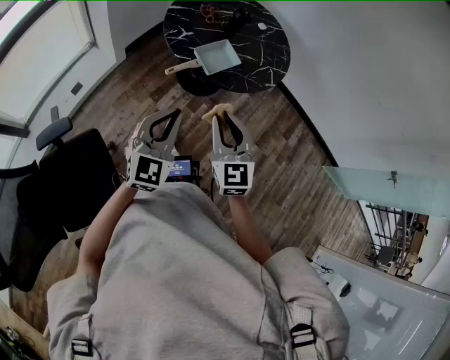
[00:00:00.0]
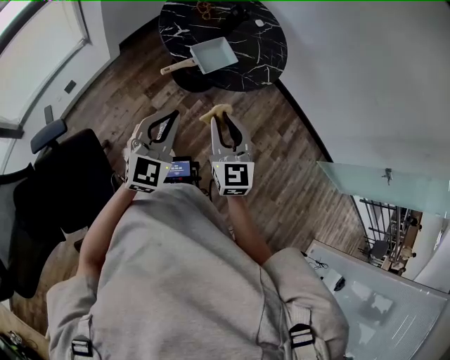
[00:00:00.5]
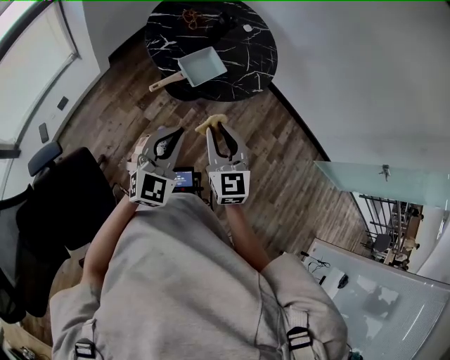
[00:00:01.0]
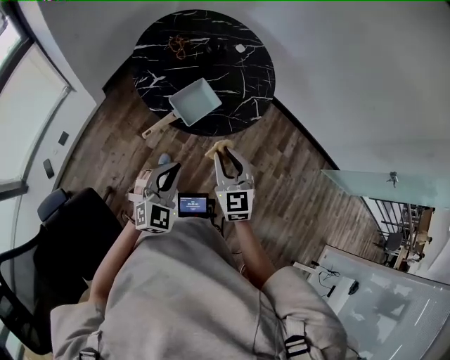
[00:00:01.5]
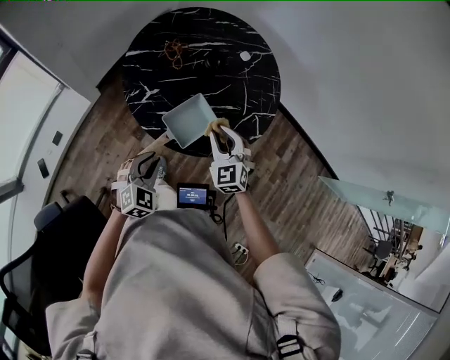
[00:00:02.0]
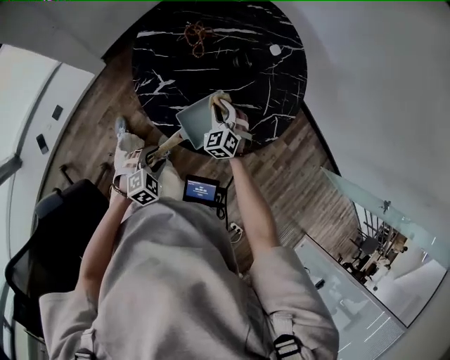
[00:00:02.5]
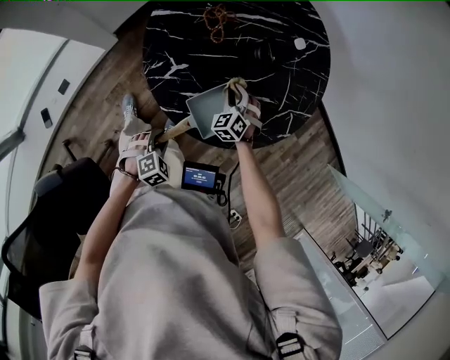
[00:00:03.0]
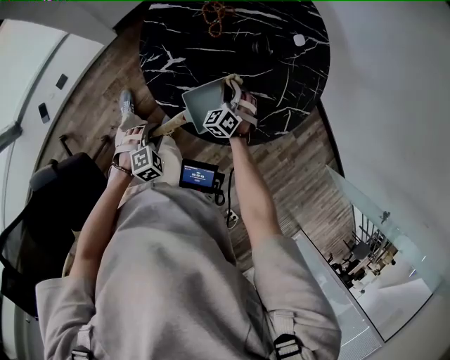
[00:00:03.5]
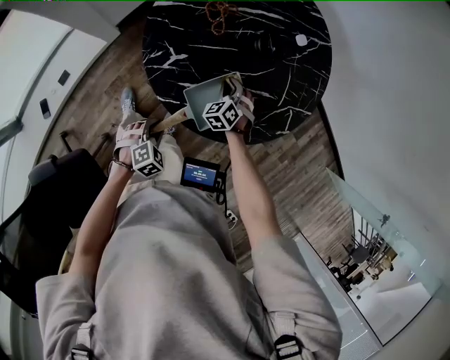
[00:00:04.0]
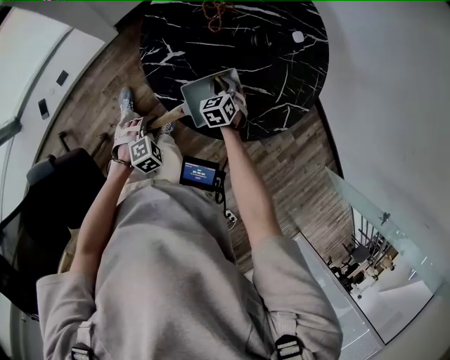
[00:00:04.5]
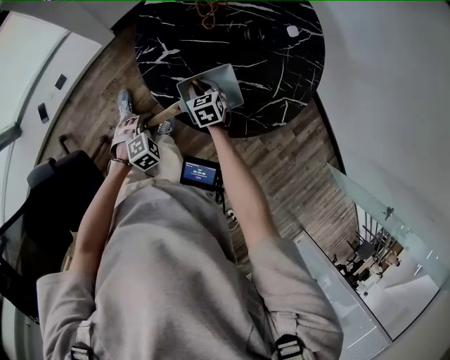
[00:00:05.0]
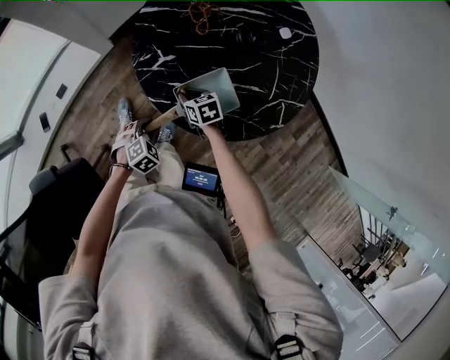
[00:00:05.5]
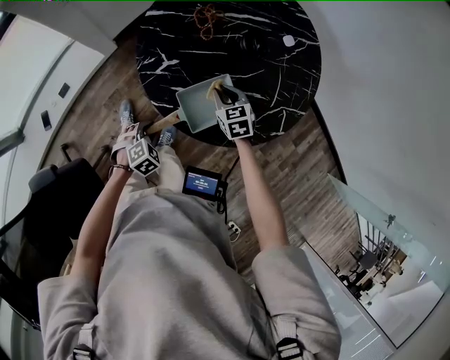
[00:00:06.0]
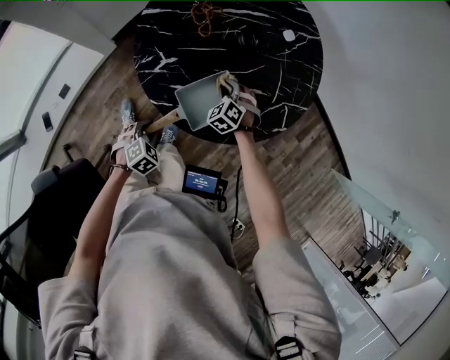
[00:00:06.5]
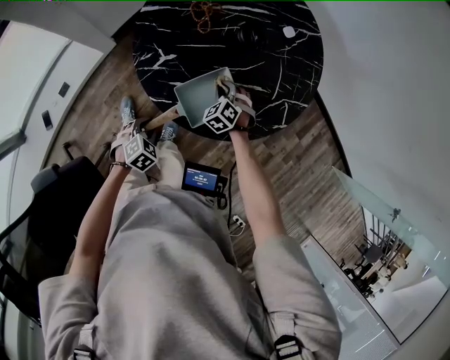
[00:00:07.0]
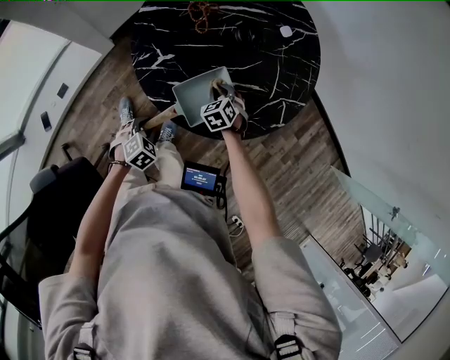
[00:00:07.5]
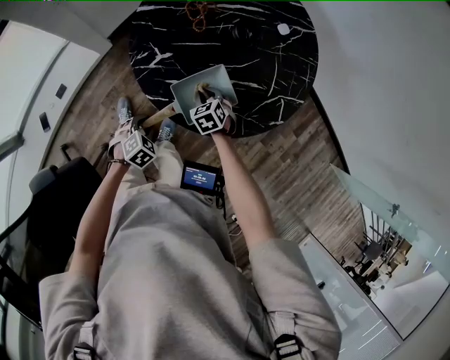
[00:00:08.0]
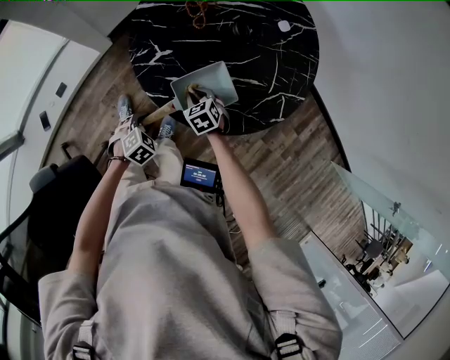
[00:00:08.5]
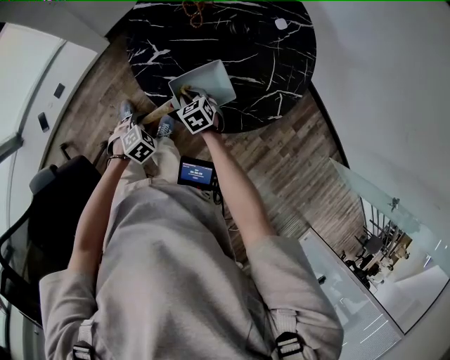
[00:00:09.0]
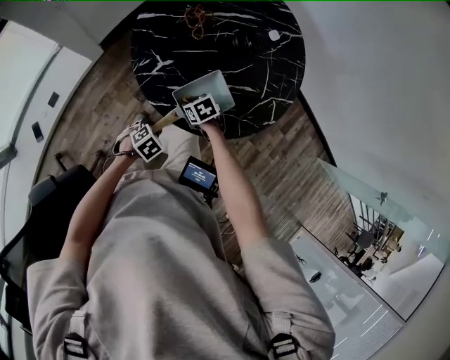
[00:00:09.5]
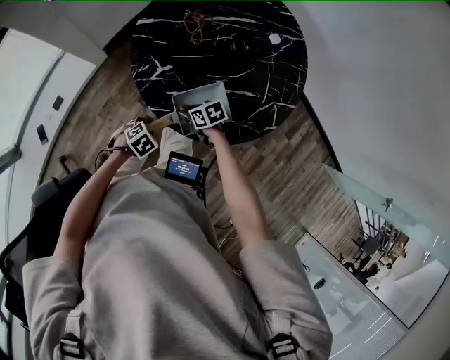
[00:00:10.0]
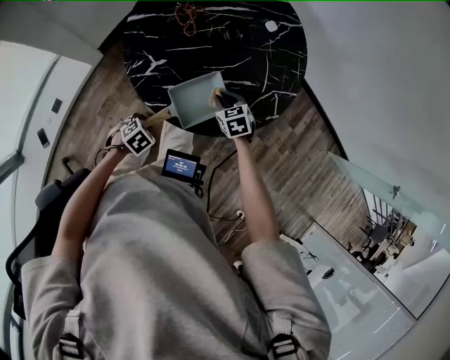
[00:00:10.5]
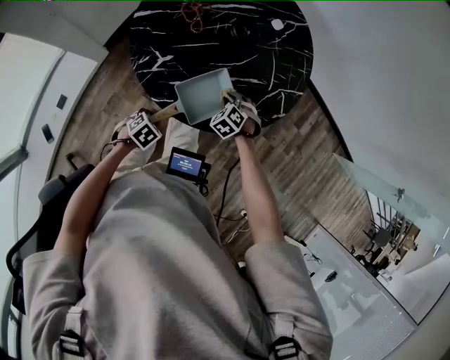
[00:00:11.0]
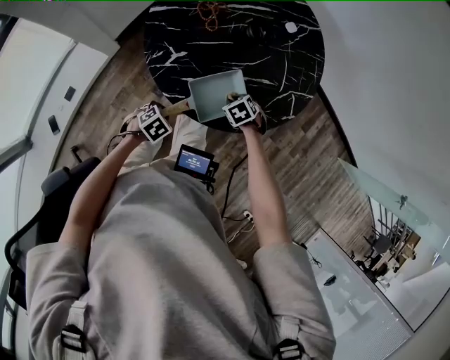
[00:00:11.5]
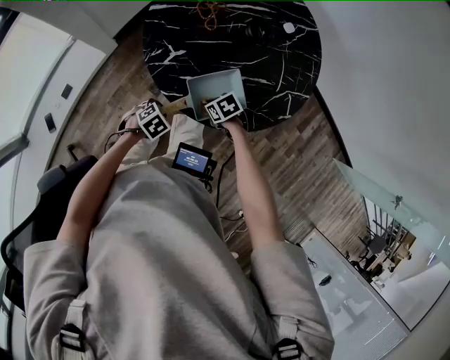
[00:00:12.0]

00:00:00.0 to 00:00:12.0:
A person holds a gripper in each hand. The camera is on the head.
00:00:00.0 to 00:00:02.0: The left gripper travels forward and downward by approximately 30 cm, and tilts its fingers approximately 30 degrees downward. The right gripper travels forward by approximately 35 cm, and turns by about 30 degrees.
00:00:02.0 to 00:00:04.0: The right gripper moves downward and forward, about 25 cm, and swivels approximately 30 degrees. Meanwhile the left gripper moves downward, roughly 20 cm, and rotates some 30 degrees.
00:00:04.0 to 00:00:06.0: The right gripper goes roughly 5 cm upward, and changes its angle by some 30 degrees.
00:00:06.0 to 00:00:08.0: The right gripper heads downward, covering about 5 cm.
00:00:08.0 to 00:00:10.0: The left gripper turns by some 20 degrees. Meanwhile the right gripper moves some 5 cm, and swivels approximately 40 degrees.

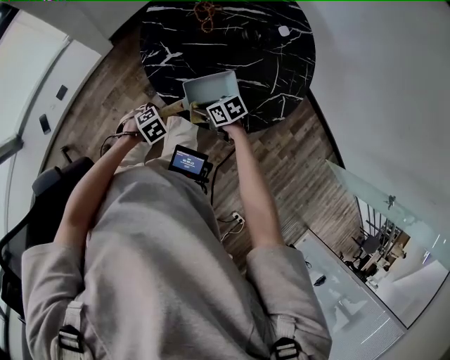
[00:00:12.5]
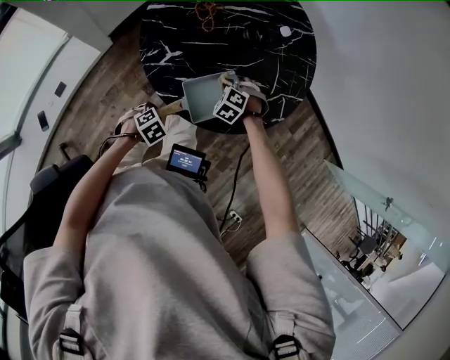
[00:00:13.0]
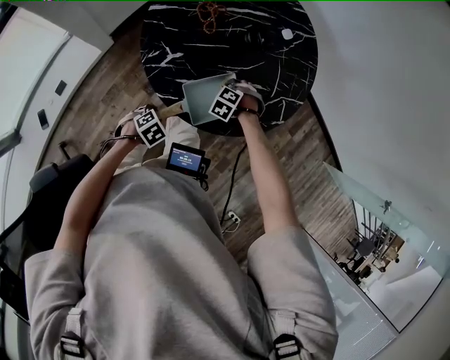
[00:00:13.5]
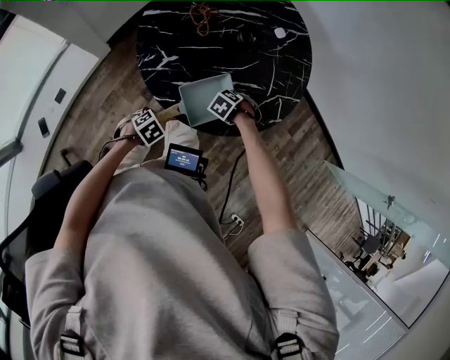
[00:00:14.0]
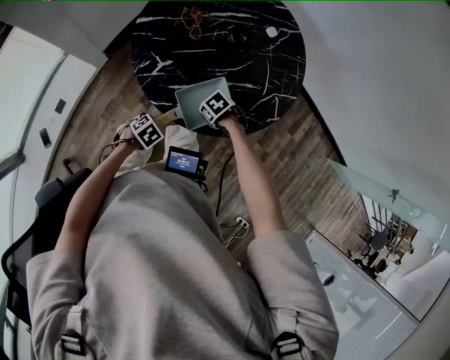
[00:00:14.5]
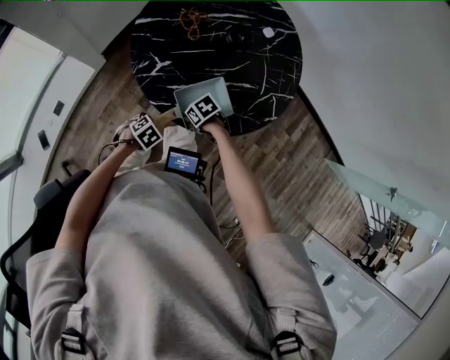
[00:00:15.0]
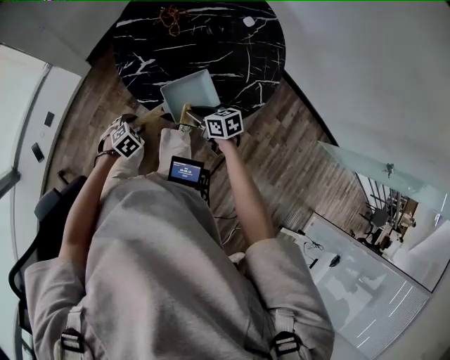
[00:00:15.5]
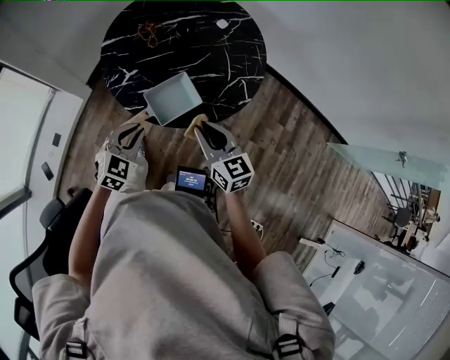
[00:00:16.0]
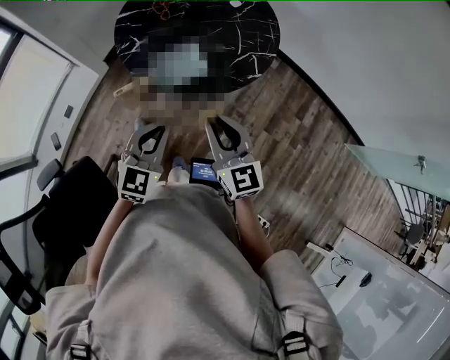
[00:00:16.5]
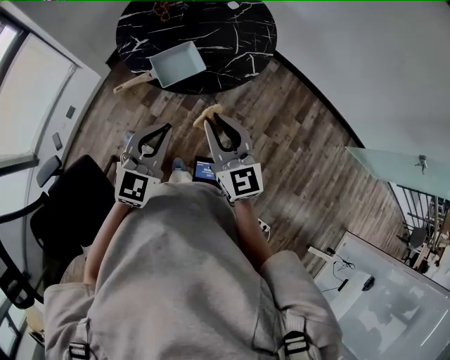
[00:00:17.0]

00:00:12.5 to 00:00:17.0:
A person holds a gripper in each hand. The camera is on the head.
00:00:12.5 to 00:00:14.5: The right gripper rotates roughly 30 degrees.
00:00:14.5 to 00:00:17.0: The grippers both shift upward by some 35 cm. The left gripper angles its fingers upward, by approximately 60 degrees, and opens, then closes once more. The right gripper points its fingers approximately 70 degrees further upward.

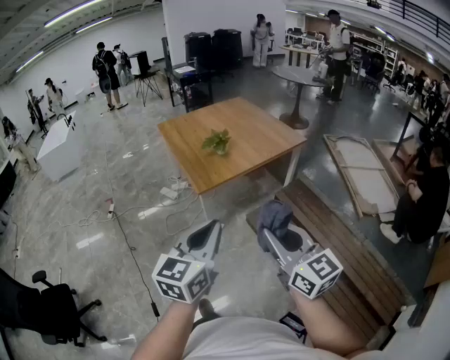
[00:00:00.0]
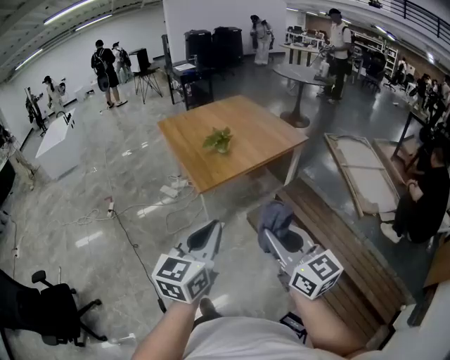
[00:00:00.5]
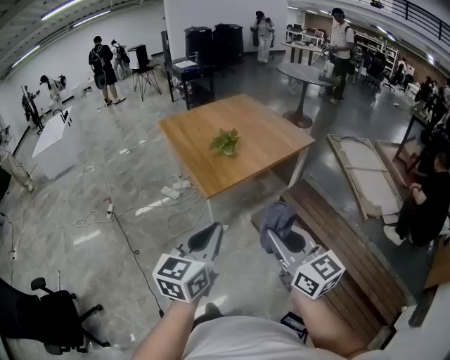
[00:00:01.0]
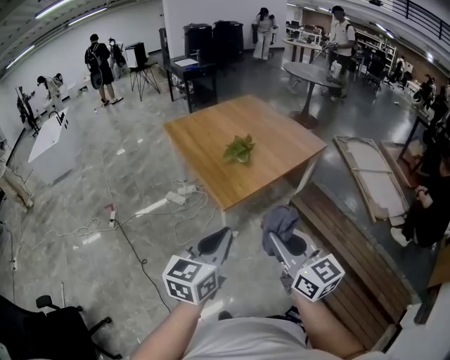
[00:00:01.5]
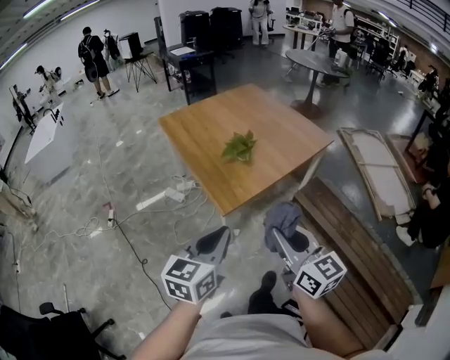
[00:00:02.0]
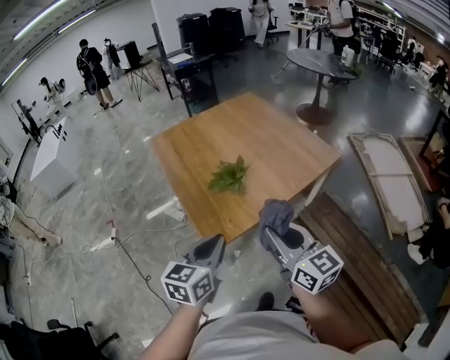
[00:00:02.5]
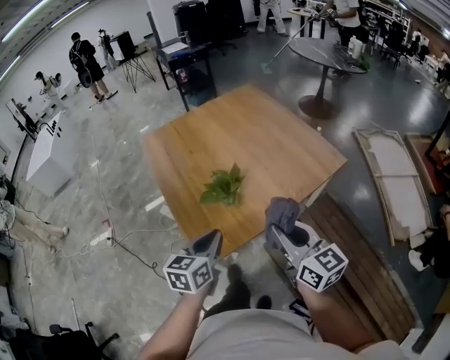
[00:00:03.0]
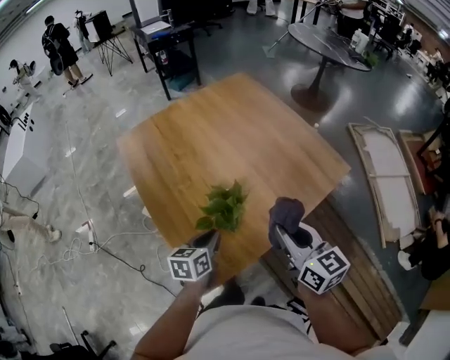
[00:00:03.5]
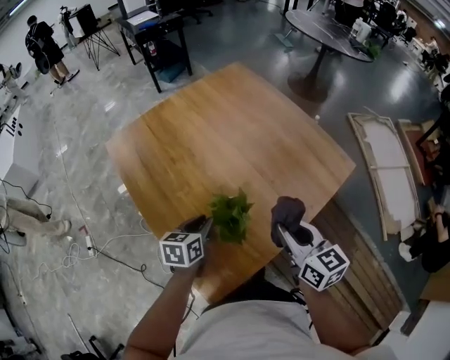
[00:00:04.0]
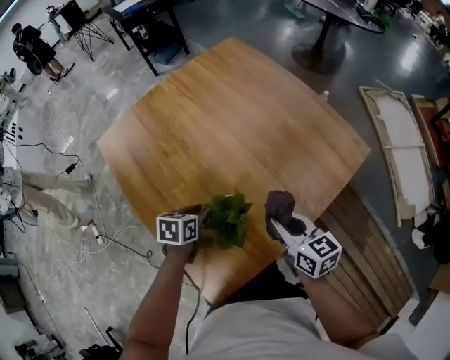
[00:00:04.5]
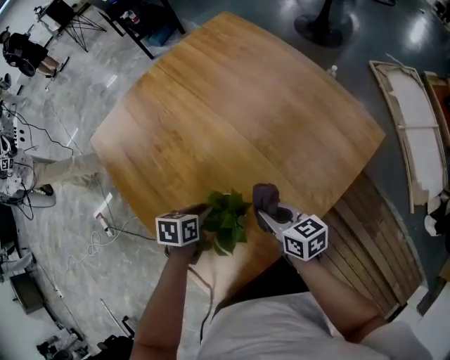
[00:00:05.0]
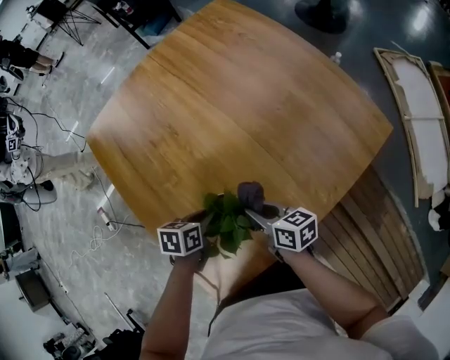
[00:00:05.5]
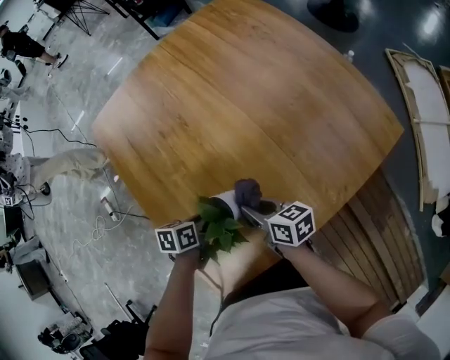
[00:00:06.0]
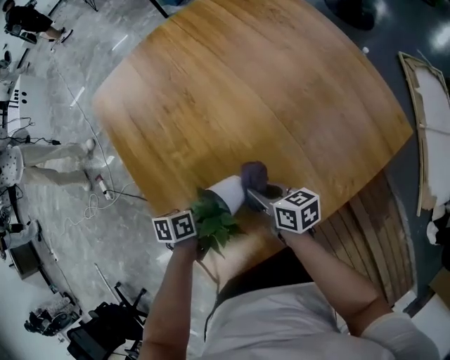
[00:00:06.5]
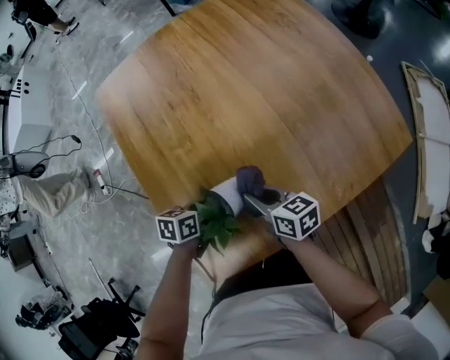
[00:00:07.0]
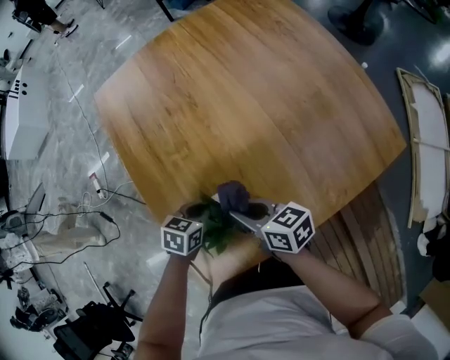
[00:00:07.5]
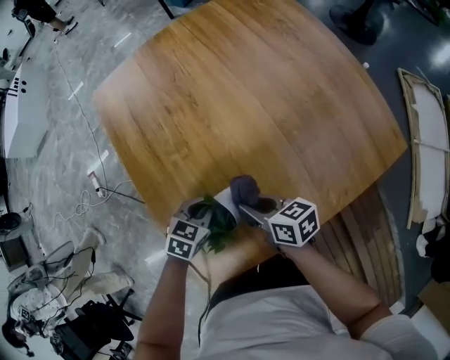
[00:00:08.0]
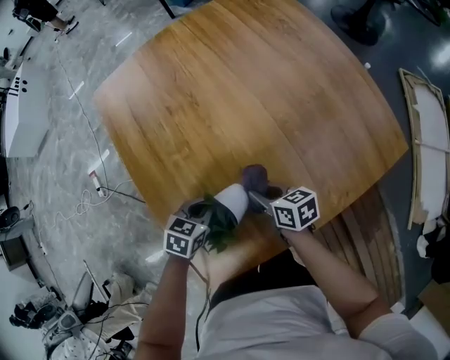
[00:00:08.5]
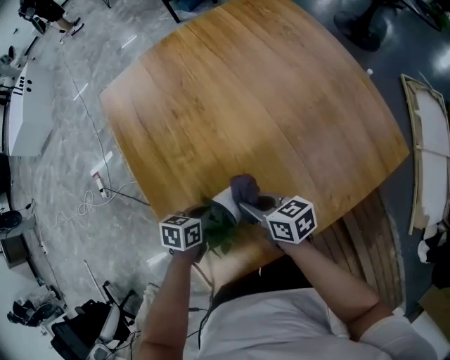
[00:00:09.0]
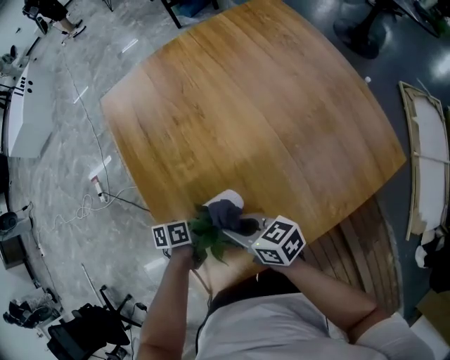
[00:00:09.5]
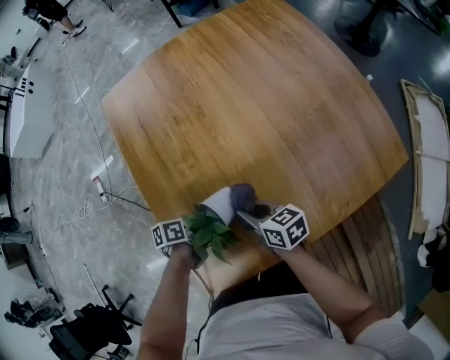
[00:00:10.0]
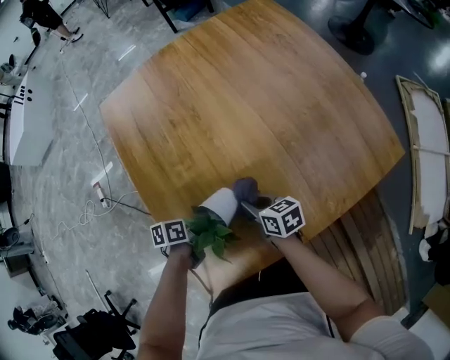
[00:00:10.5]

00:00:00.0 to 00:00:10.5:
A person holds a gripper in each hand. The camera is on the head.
00:00:00.0 to 00:00:02.0: The two grippers go some 35 cm forward and to the left.
00:00:02.0 to 00:00:04.0: The two grippers travel together, forward, some 60 cm. The left gripper rotates some 30 degrees.
00:00:04.0 to 00:00:06.5: Both grippers travel together downward, roughly 25 cm. The right gripper rotates roughly 40 degrees. The left gripper changes its angle by about 30 degrees.
00:00:06.5 to 00:00:08.5: The left gripper turns by roughly 40 degrees; the right gripper travels upward and back again, about 5 cm each way.
00:00:08.5 to 00:00:10.5: The left gripper shifts by roughly 5 cm, and rotates around the line of its fingers by about 50 degrees, counterclockwise from behind. Meanwhile the right gripper goes upward and returns, some 10 cm each way.
